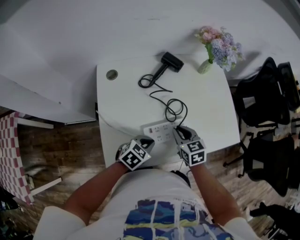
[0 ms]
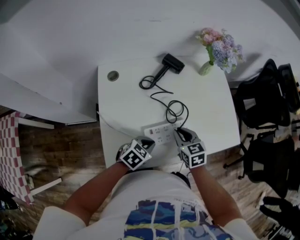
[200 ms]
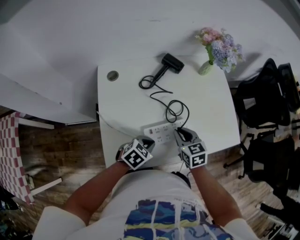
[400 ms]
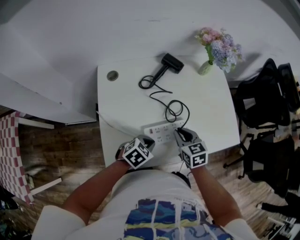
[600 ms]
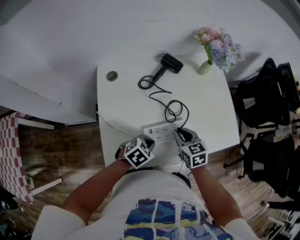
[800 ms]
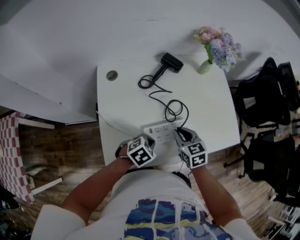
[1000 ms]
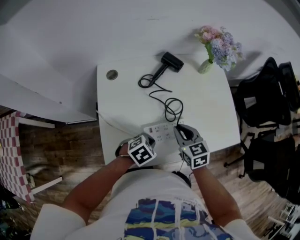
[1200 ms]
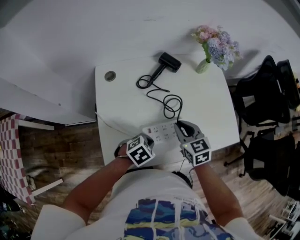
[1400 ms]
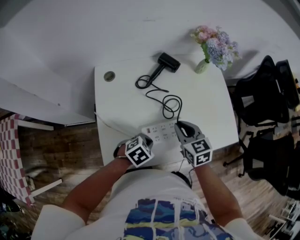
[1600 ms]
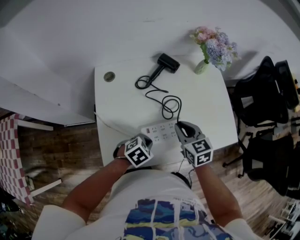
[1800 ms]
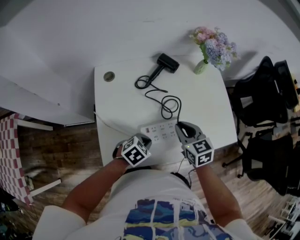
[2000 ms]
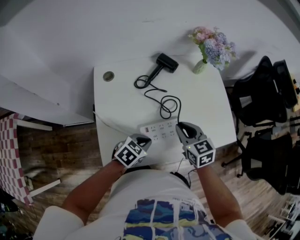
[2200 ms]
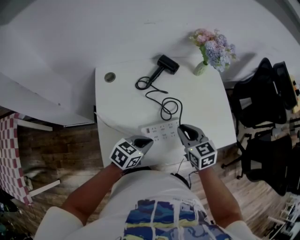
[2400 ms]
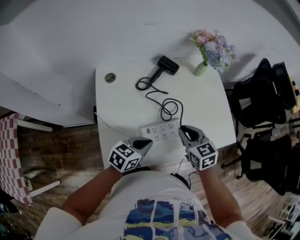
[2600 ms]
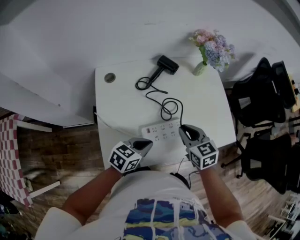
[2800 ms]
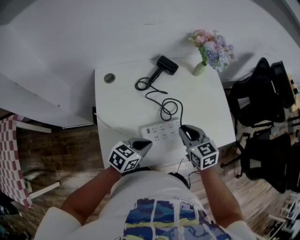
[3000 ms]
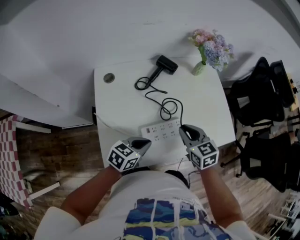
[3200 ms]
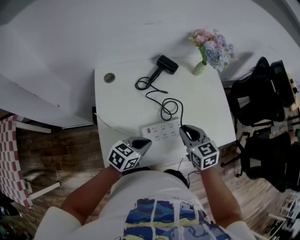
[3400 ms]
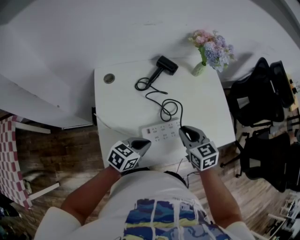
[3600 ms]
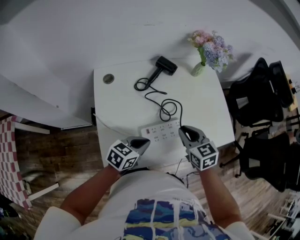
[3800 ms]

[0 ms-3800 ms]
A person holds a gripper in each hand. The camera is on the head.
0 ms to 1200 ms: The grippers move only a little.
1200 ms to 2600 ms: The left gripper moves upward, approximately 5 cm, and swivels some 40 degrees.
2600 ms to 3800 ms: Both grippers stay about where they are.

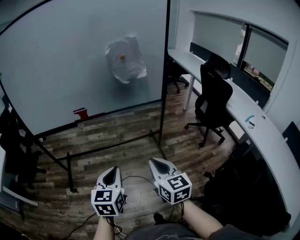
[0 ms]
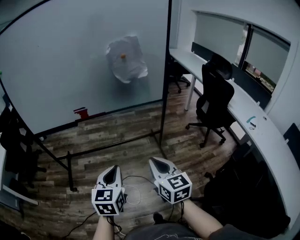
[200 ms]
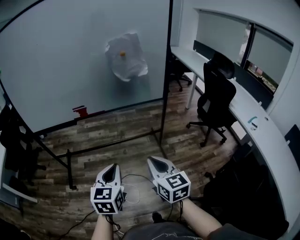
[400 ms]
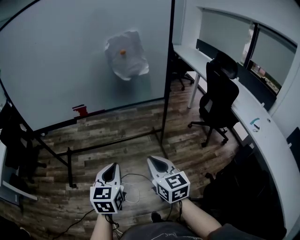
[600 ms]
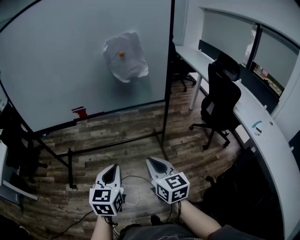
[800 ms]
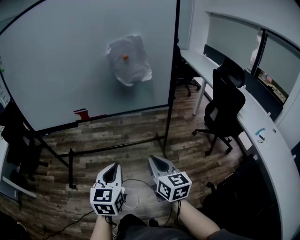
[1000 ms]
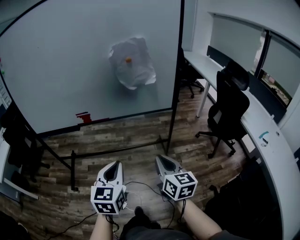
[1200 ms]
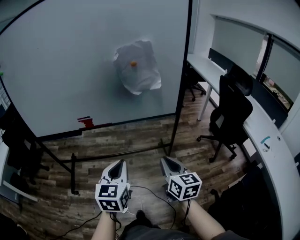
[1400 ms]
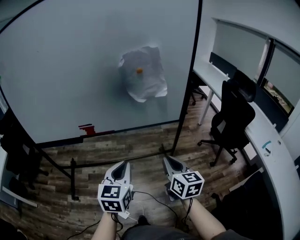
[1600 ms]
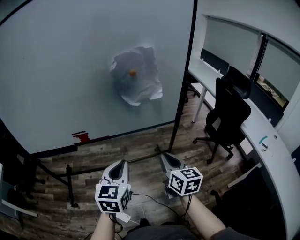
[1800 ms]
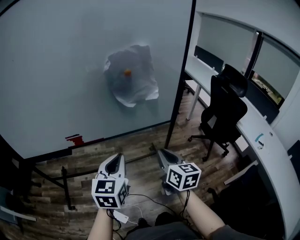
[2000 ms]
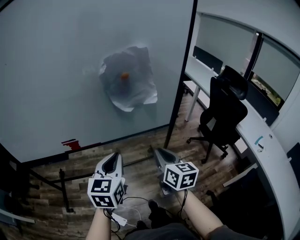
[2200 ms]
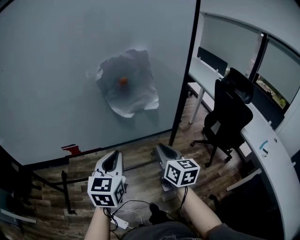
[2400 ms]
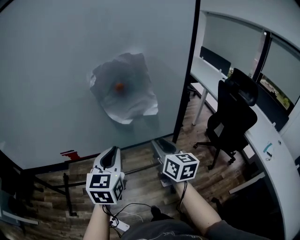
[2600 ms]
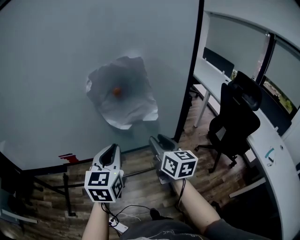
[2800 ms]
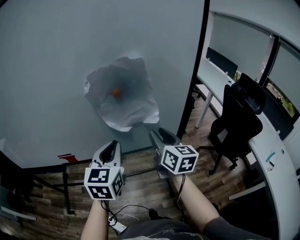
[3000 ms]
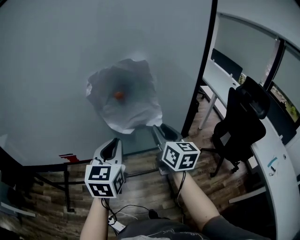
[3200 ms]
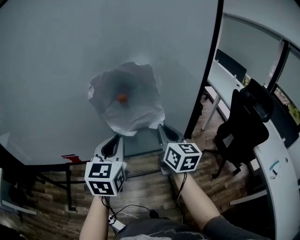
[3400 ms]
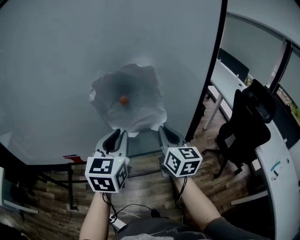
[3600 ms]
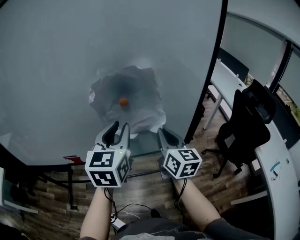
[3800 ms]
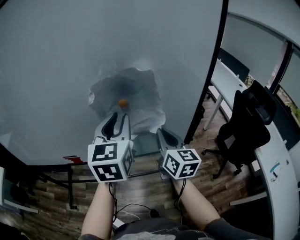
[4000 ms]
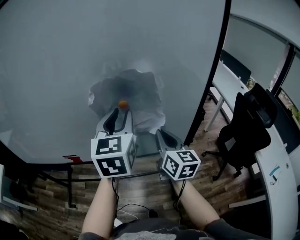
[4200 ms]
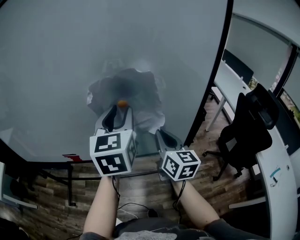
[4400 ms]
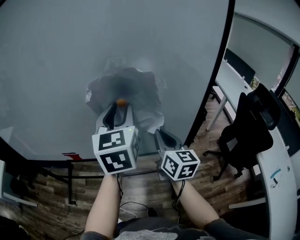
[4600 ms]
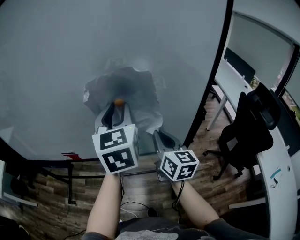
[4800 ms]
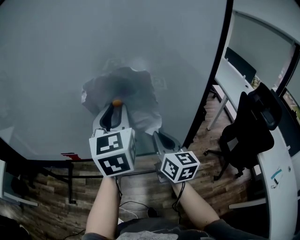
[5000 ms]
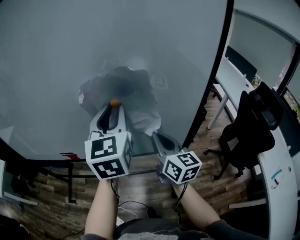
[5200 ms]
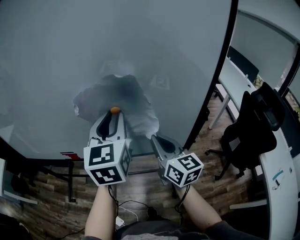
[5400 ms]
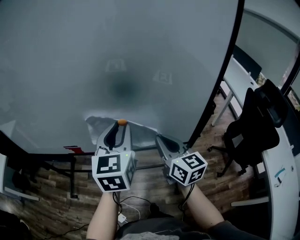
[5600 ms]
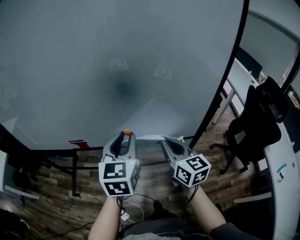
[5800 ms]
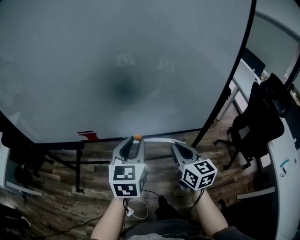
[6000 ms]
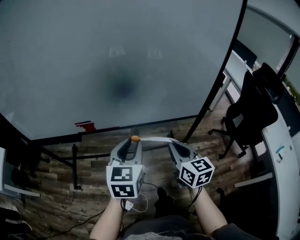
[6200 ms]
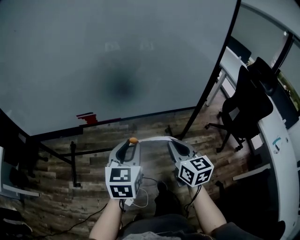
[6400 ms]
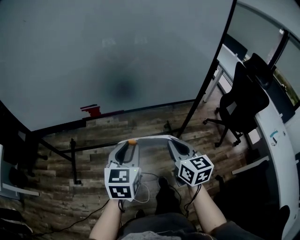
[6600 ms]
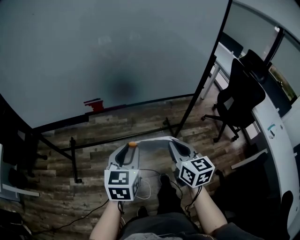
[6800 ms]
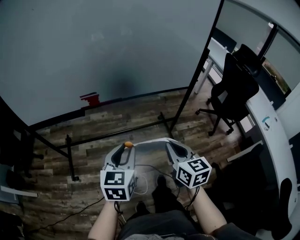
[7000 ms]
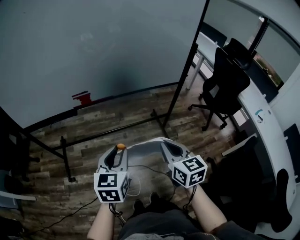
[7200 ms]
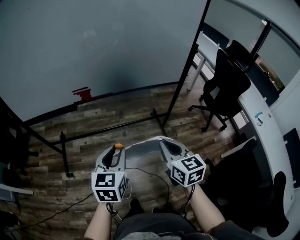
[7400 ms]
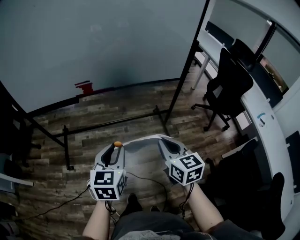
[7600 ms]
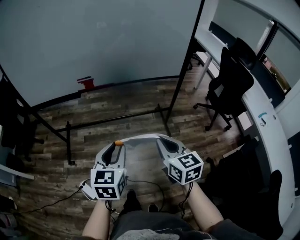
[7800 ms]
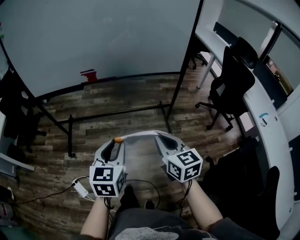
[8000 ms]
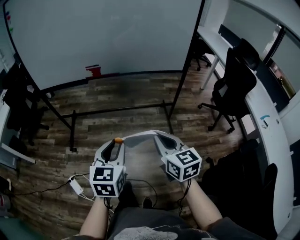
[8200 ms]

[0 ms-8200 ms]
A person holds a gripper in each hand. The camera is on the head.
0 ms to 1600 ms: Both grippers travel together forward, some 20 cm.
1600 ms to 3200 ms: The grippers both shift forward by some 30 cm. The right gripper opens its fingers.
3200 ms to 5000 ms: The left gripper shifts approximately 15 cm upward and forward, and opens. Meanwhile the right gripper closes its fingers.
5000 ms to 6600 ms: The right gripper goes about 30 cm backward, to the left and downward; the left gripper shifts about 40 cm backward, downward and to the left, and changes its angle by about 30 degrees.
6600 ms to 8200 ms: The grippers both shift backward by approximately 30 cm.

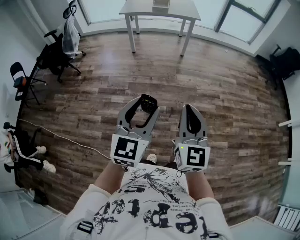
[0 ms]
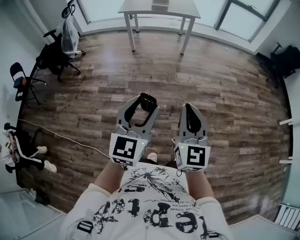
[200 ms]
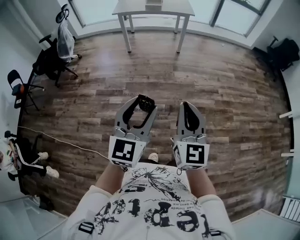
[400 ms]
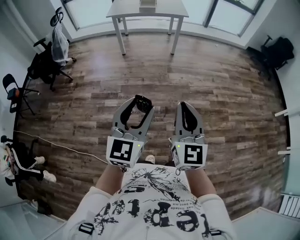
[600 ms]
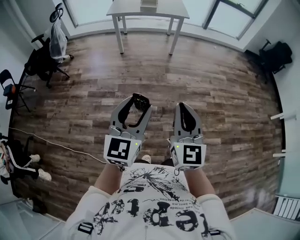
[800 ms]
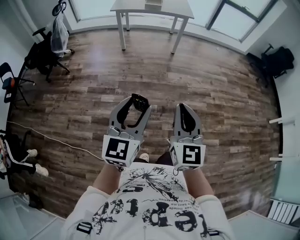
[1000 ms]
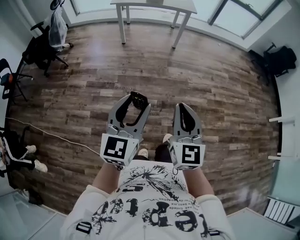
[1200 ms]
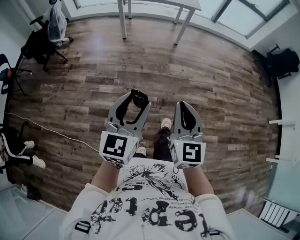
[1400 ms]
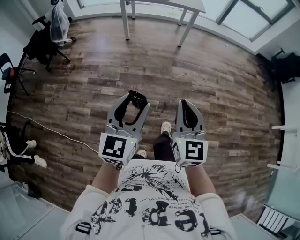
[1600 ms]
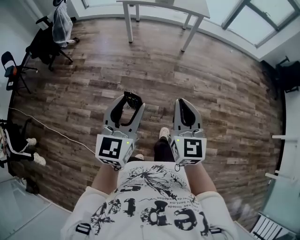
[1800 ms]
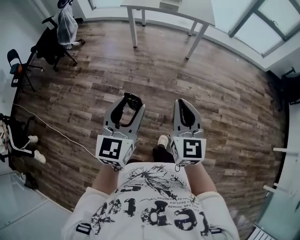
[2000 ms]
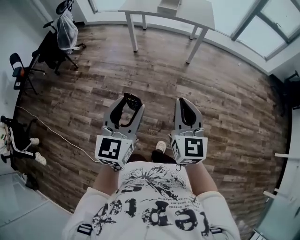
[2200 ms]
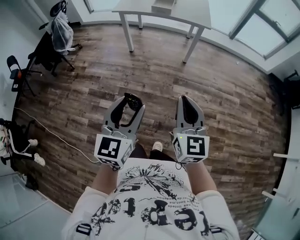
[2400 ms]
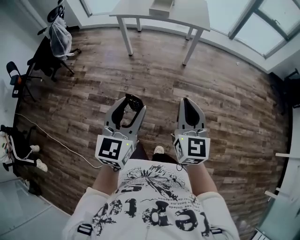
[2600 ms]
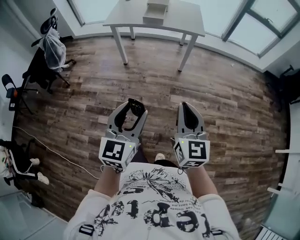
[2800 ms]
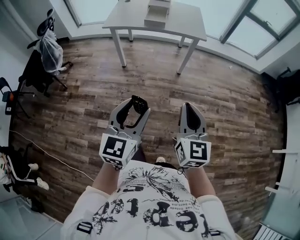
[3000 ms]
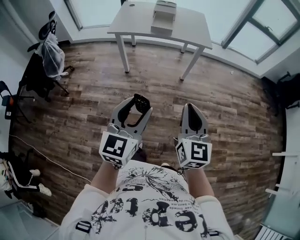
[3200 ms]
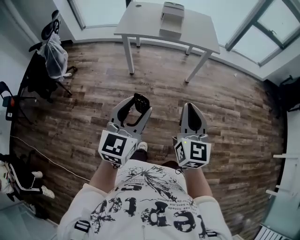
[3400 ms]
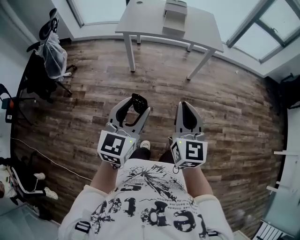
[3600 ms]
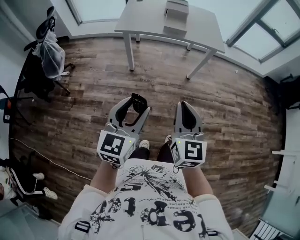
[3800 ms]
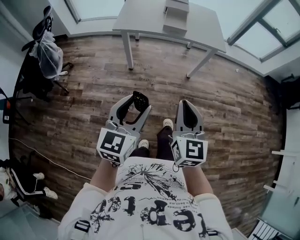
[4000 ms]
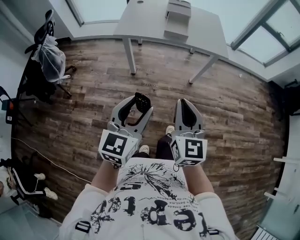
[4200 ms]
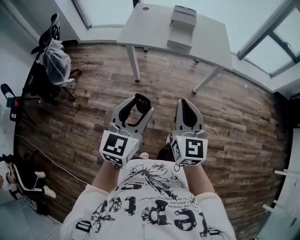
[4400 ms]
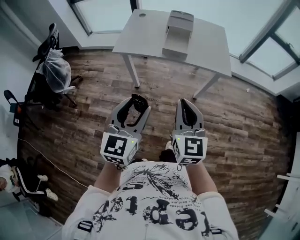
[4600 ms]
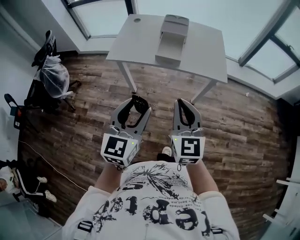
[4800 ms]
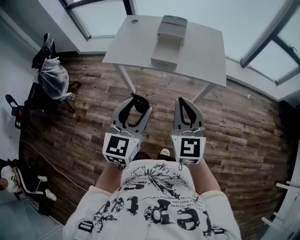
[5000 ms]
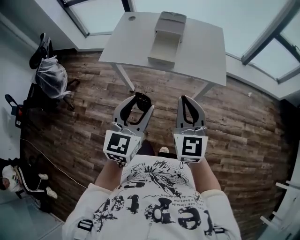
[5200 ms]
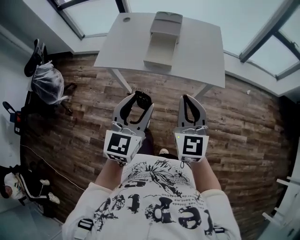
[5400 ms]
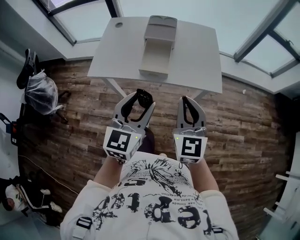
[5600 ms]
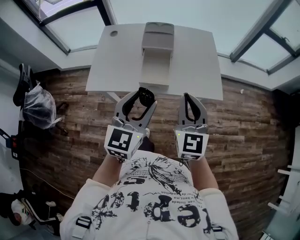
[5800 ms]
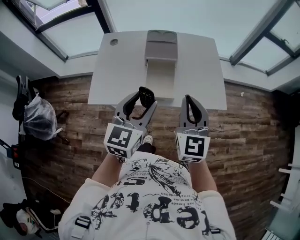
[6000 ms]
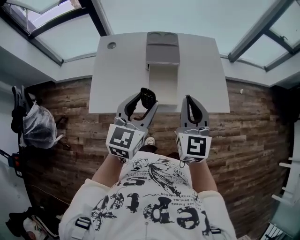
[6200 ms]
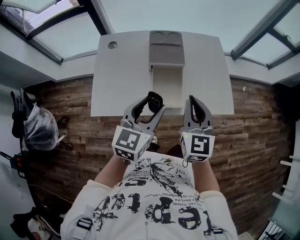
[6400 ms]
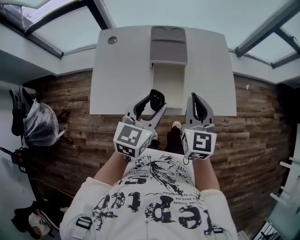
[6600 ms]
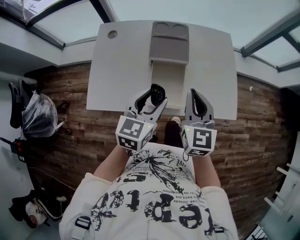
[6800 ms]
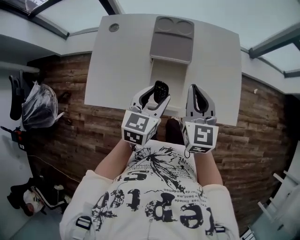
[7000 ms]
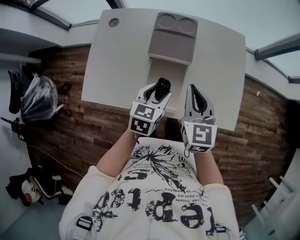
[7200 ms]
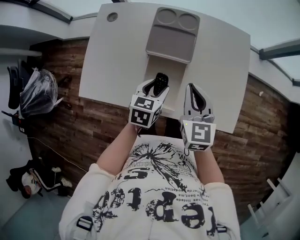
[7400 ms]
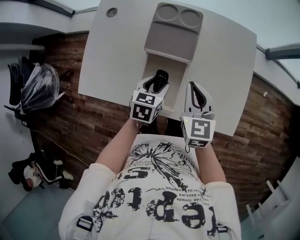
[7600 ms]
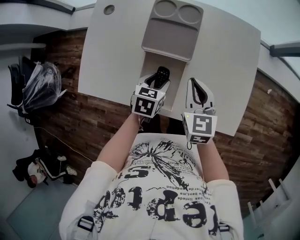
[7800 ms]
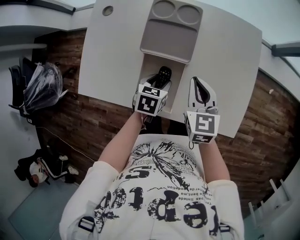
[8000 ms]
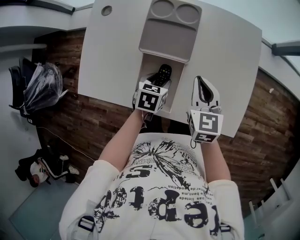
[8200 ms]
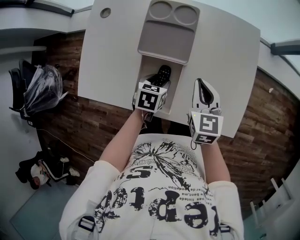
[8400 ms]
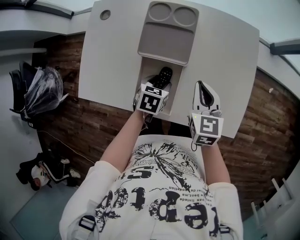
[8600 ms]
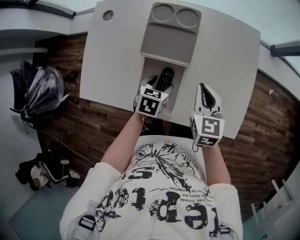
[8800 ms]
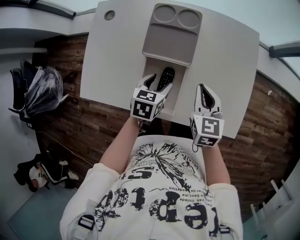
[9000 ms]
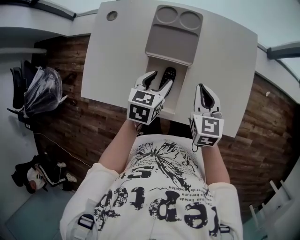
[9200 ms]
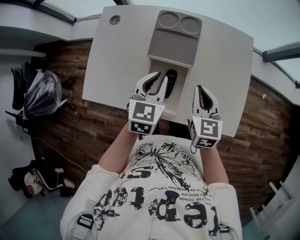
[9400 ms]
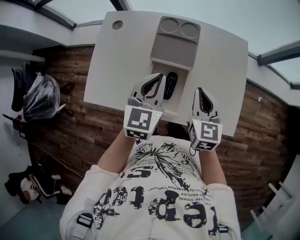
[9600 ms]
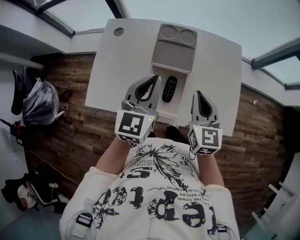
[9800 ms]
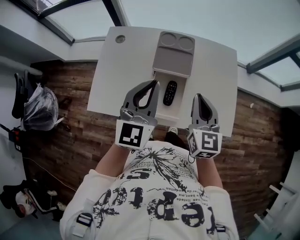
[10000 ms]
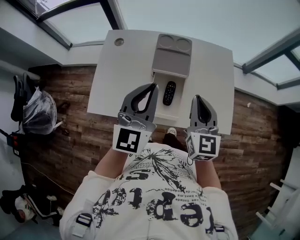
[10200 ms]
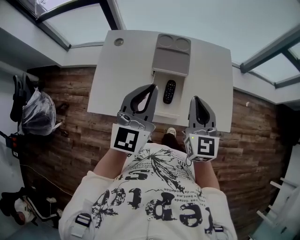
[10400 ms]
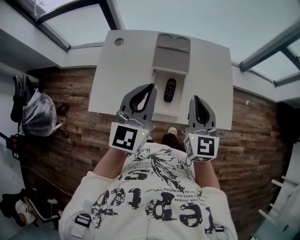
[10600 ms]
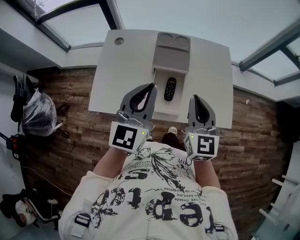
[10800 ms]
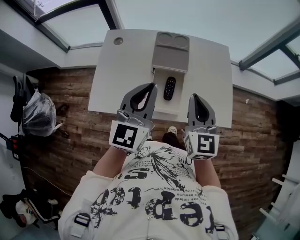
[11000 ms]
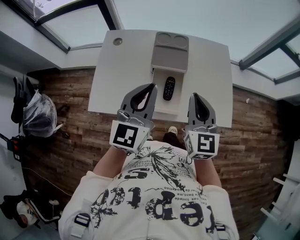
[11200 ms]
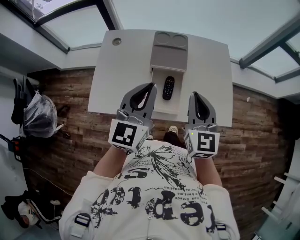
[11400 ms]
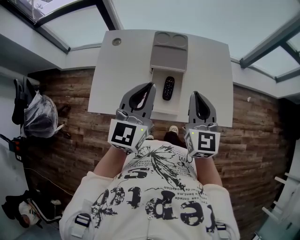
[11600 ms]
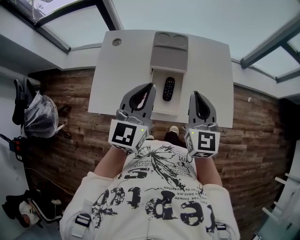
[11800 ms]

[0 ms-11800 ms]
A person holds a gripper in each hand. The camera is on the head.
0 ms to 1400 ms: Both grippers move forward, roughly 10 cm.
1400 ms to 3000 ms: Both grippers move forward, about 35 cm.
3000 ms to 4400 ms: The grippers both shift forward and to the left by some 30 cm.
4400 ms to 6000 ms: The pair of grippers is taken forward, approximately 40 cm.
6000 ms to 7400 ms: The left gripper is displaced downward and forward by some 30 cm, and tips its fingers downward by roughly 30 degrees. The right gripper shifts roughly 25 cm forward and downward, and rotates some 30 degrees.
7400 ms to 8800 ms: The left gripper moves downward, roughly 5 cm; the right gripper moves downward and to the right, about 10 cm.
8800 ms to 10400 ms: The right gripper heads upward and backward, covering about 20 cm, and changes its angle by approximately 30 degrees. The left gripper shifts approximately 35 cm upward, points its fingers roughly 60 degrees further upward, and closes.
10400 ms to 11800 ms: There are only small adjustments of the grippers.
